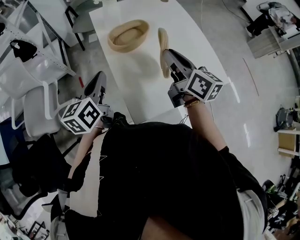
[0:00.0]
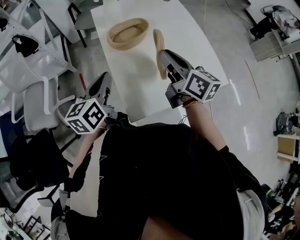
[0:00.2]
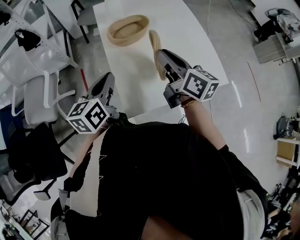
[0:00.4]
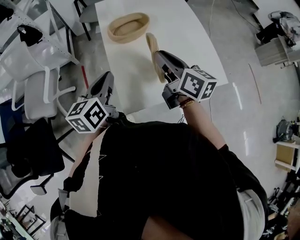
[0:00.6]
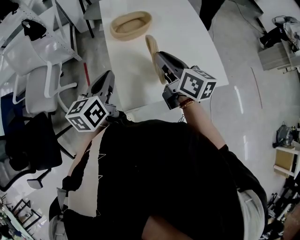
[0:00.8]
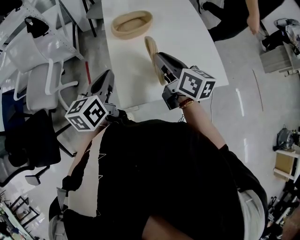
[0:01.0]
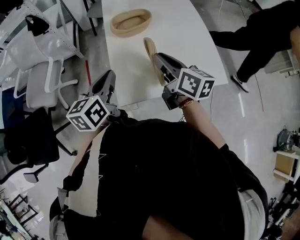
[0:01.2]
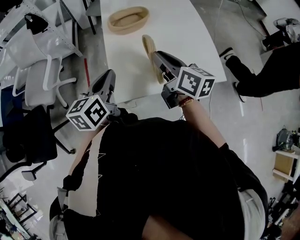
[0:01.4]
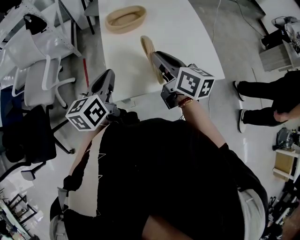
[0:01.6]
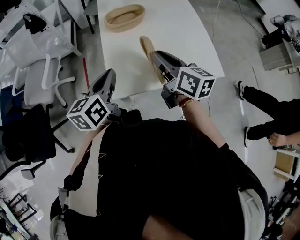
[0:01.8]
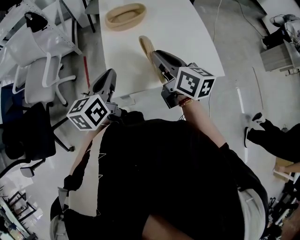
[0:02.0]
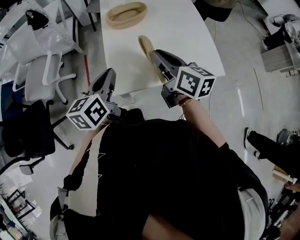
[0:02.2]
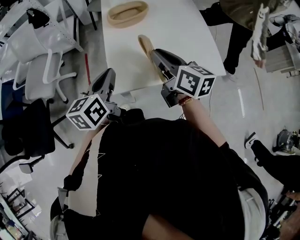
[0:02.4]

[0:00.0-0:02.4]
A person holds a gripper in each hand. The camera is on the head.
0:00.0 to 0:01.2: The right gripper travels backward by roughly 5 cm. The left gripper is displaced backward and to the right by some 10 cm.
0:01.2 to 0:02.4: The grippers make only small movements.

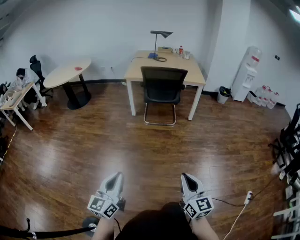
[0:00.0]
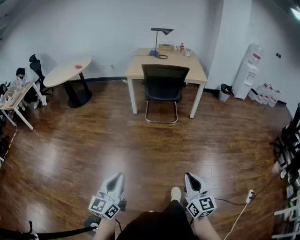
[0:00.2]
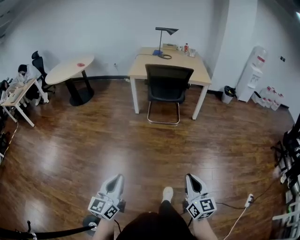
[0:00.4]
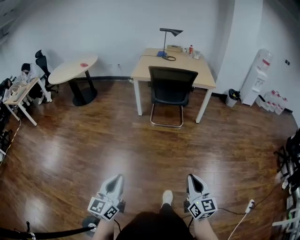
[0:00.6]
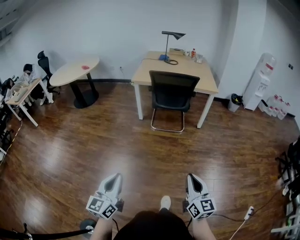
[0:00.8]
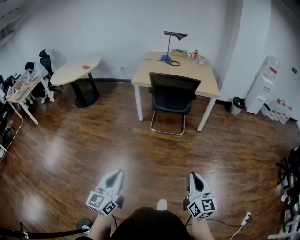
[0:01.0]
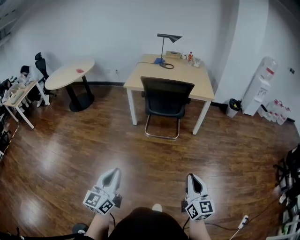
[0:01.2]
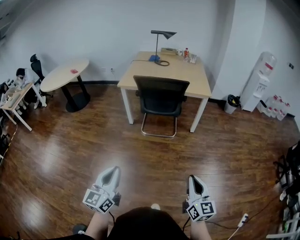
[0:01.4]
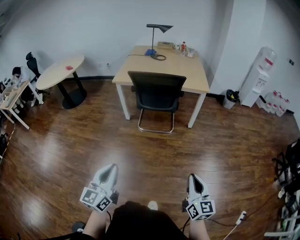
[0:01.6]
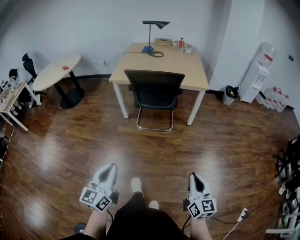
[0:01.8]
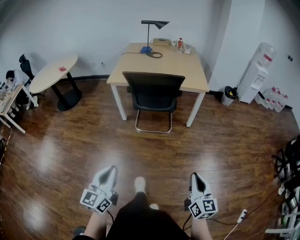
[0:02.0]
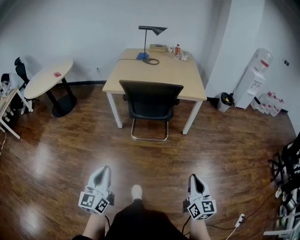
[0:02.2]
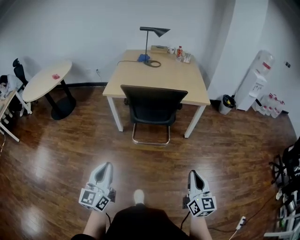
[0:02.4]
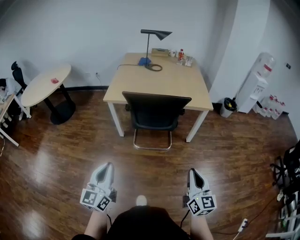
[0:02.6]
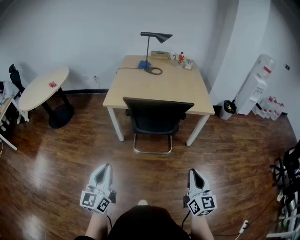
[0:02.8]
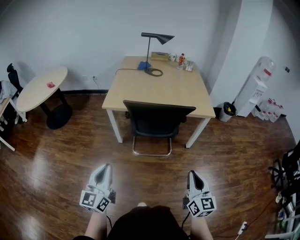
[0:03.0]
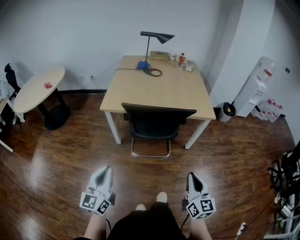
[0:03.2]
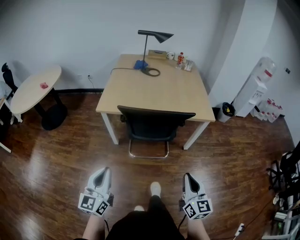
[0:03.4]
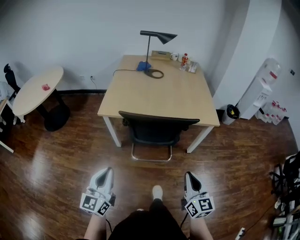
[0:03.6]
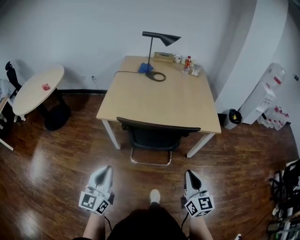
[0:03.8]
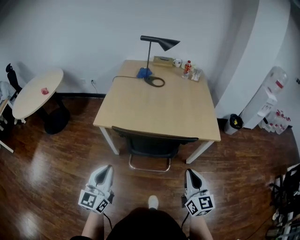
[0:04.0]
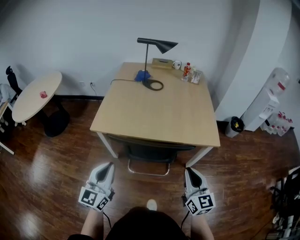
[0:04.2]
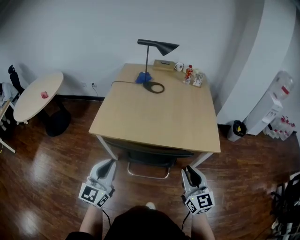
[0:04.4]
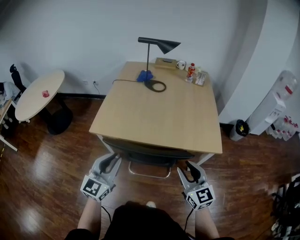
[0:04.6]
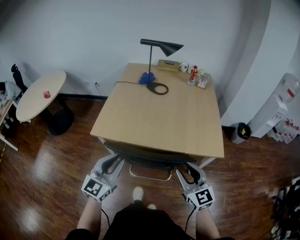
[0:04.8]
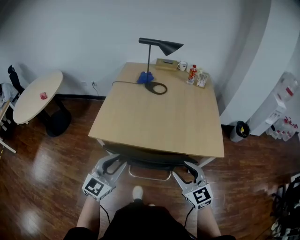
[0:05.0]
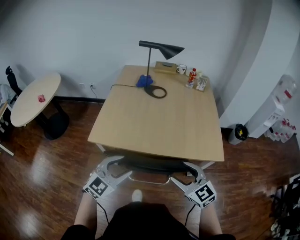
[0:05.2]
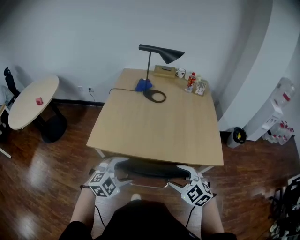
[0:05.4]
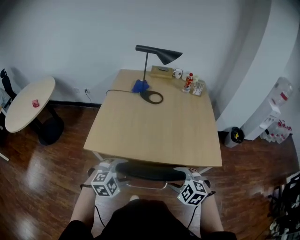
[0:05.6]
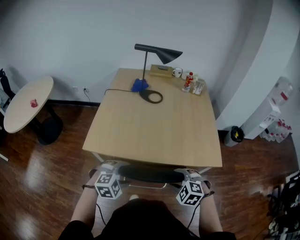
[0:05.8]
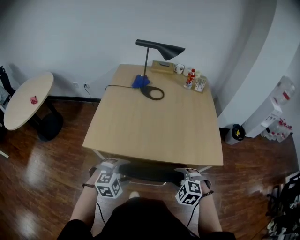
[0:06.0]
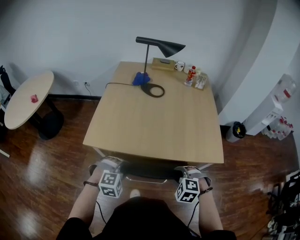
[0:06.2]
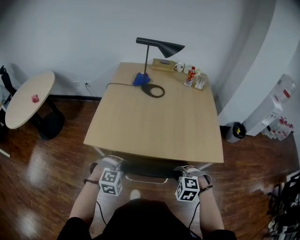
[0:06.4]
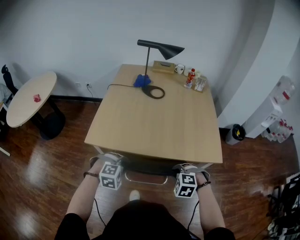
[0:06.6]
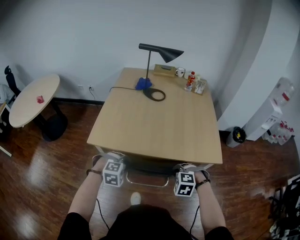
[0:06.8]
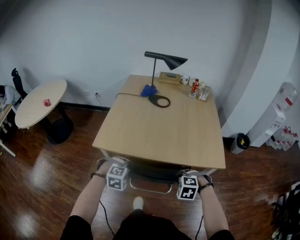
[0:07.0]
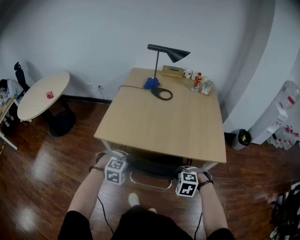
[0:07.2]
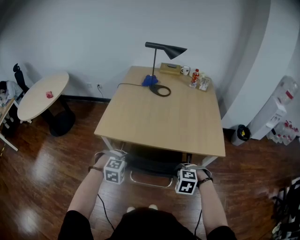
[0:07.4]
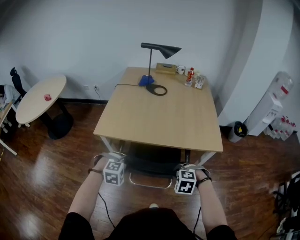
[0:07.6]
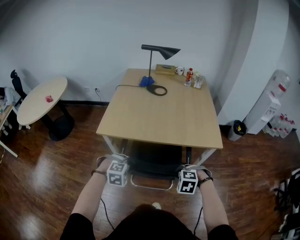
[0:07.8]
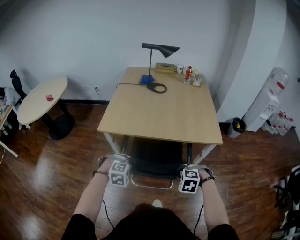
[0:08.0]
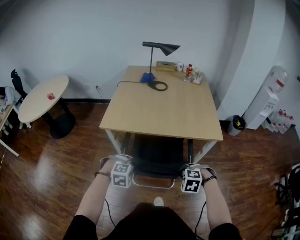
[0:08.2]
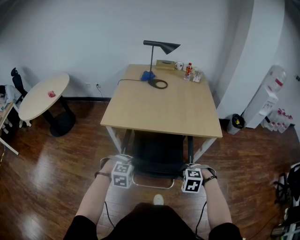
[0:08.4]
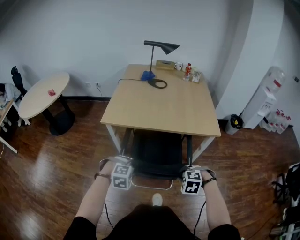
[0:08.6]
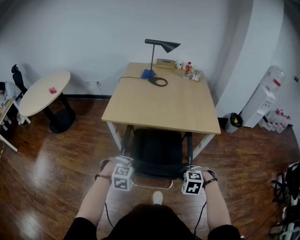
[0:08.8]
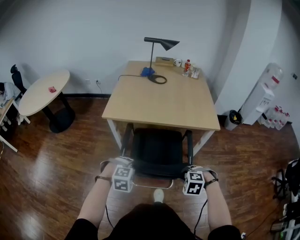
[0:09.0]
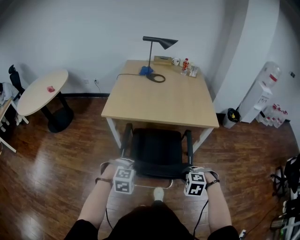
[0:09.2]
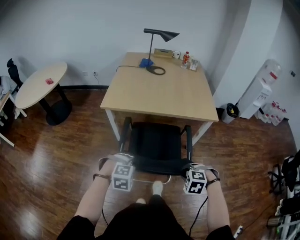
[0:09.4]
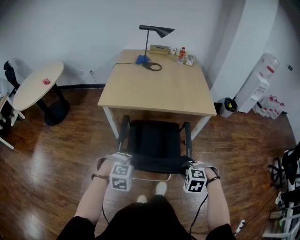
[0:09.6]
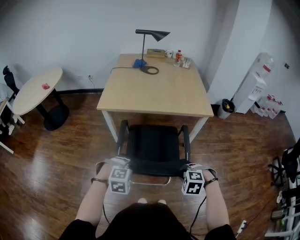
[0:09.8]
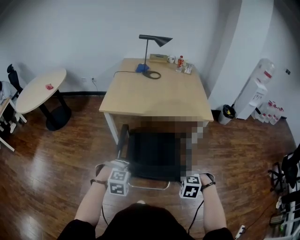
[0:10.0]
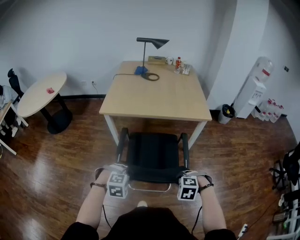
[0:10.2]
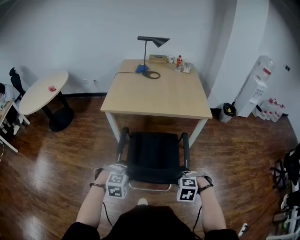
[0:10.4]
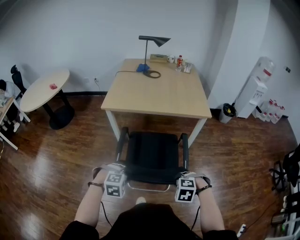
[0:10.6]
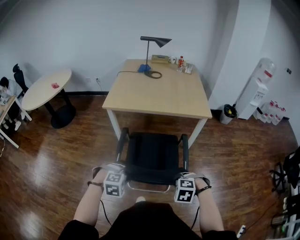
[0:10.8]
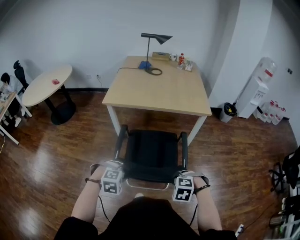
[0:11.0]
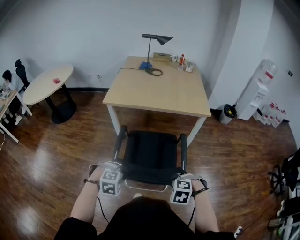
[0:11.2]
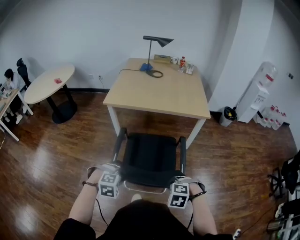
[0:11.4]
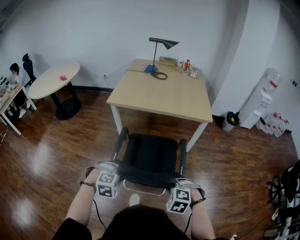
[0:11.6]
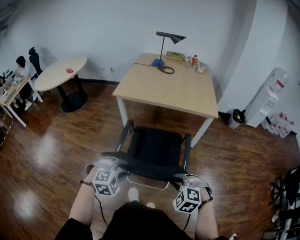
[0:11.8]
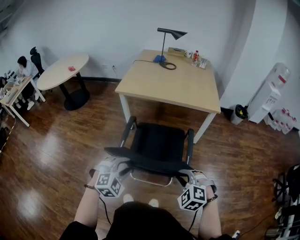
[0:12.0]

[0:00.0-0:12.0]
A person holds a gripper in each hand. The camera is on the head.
0:00.0 to 0:01.6: The grippers both shift forward and to the right by approximately 30 cm.
0:01.6 to 0:03.0: The right gripper shifts about 30 cm forward. Meanwhile the left gripper shifts roughly 35 cm forward and to the left.
0:03.0 to 0:04.4: The left gripper shifts roughly 30 cm forward and to the right. The right gripper is displaced forward by about 30 cm.
0:04.4 to 0:06.0: The right gripper shifts roughly 20 cm downward, forward and to the left, tips its fingers downward by roughly 50 degrees, and opens up; the left gripper travels downward and forward by roughly 20 cm, tips its fingers downward by approximately 50 degrees, and opens up.
0:06.0 to 0:07.6: The grippers both shift backward by roughly 10 cm. The right gripper closes up, while the left gripper closes.
0:07.6 to 0:09.0: The right gripper moves about 20 cm; the left gripper ends up approximately 20 cm from where it was.
0:09.0 to 0:10.4: The left gripper ends up about 15 cm from where it was; the right gripper moves approximately 15 cm.
0:10.4 to 0:12.0: The right gripper ends up some 10 cm from where it was, and changes its angle by about 30 degrees. The left gripper ends up some 10 cm from where it was, and changes its angle by about 30 degrees.

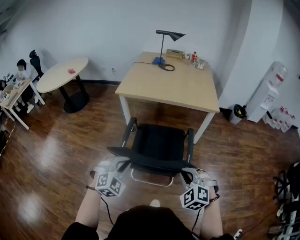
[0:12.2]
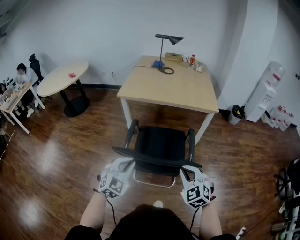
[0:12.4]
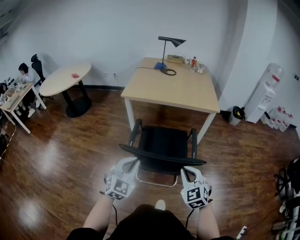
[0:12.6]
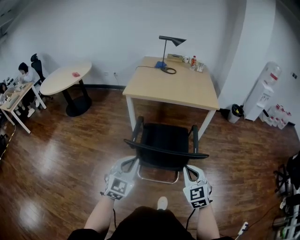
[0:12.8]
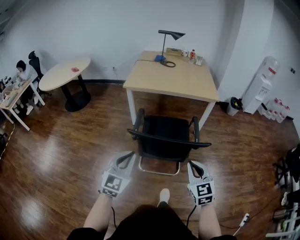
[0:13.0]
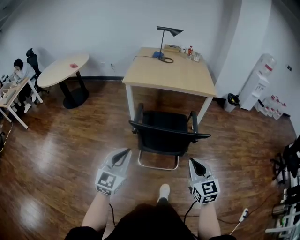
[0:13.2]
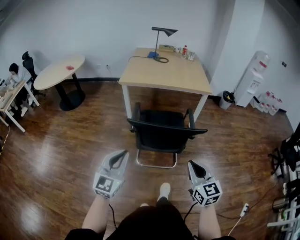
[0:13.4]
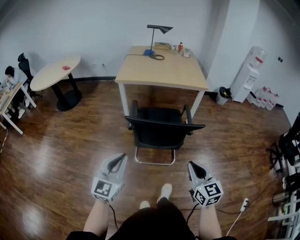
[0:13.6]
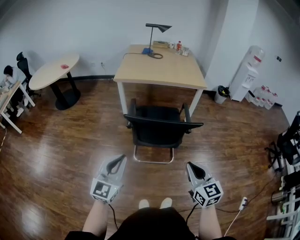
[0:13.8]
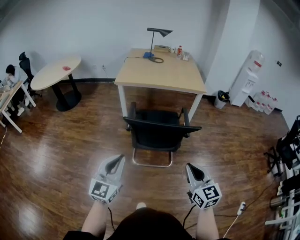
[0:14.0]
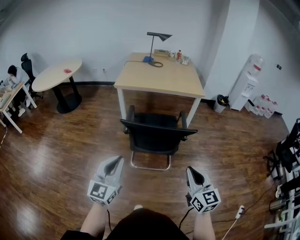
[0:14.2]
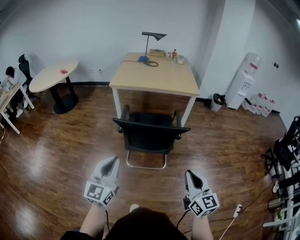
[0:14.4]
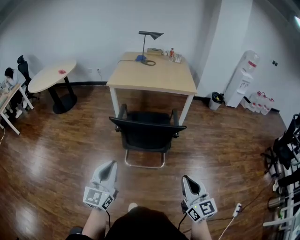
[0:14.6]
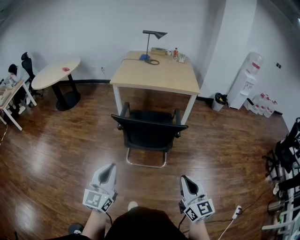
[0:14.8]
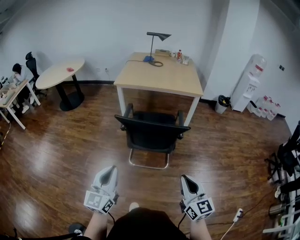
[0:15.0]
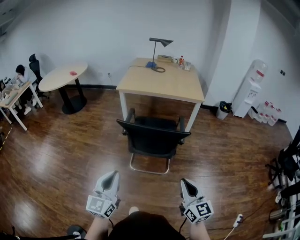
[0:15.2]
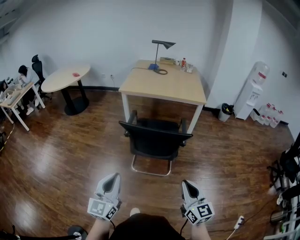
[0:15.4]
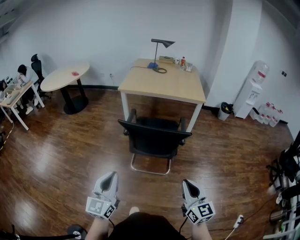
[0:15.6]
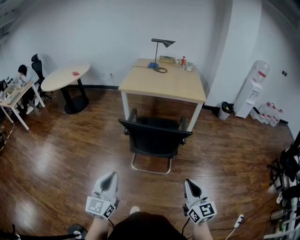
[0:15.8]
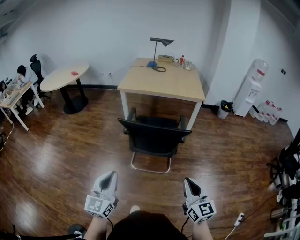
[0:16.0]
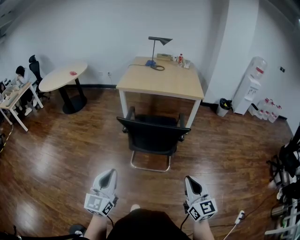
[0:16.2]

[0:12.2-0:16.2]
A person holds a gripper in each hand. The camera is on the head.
0:12.2 to 0:13.6: The left gripper shifts some 25 cm backward, to the left and upward, and tilts its fingers roughly 30 degrees upward; the right gripper goes approximately 20 cm backward, and rotates around the line of its fingers by roughly 50 degrees, clockwise from behind.
0:13.6 to 0:14.8: The grippers both shift backward and to the right by roughly 10 cm.
0:14.8 to 0:16.2: There are only small adjustments of the grippers.

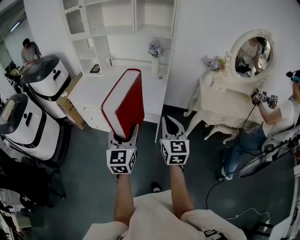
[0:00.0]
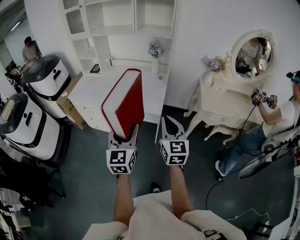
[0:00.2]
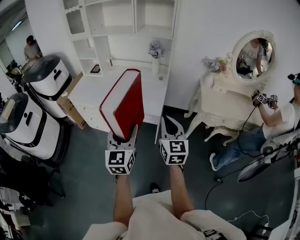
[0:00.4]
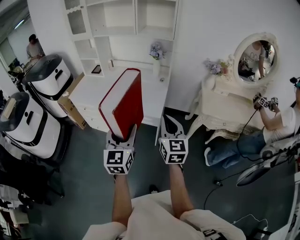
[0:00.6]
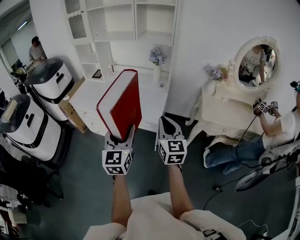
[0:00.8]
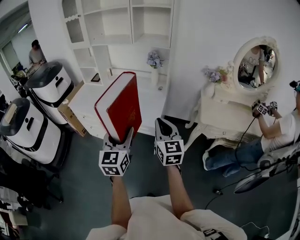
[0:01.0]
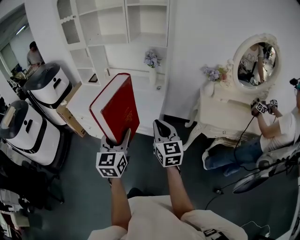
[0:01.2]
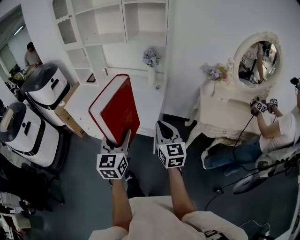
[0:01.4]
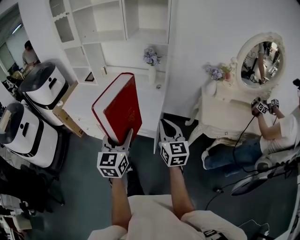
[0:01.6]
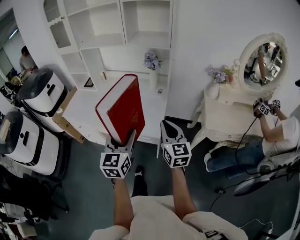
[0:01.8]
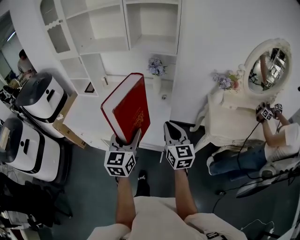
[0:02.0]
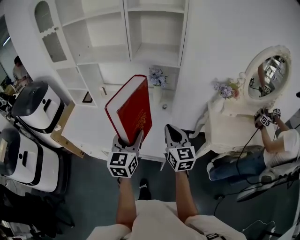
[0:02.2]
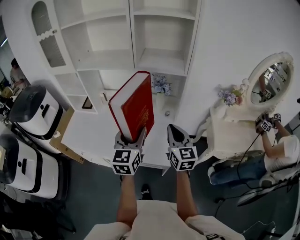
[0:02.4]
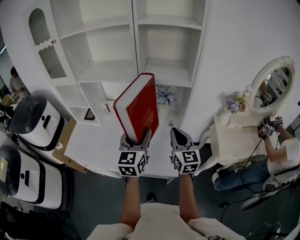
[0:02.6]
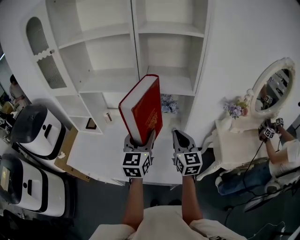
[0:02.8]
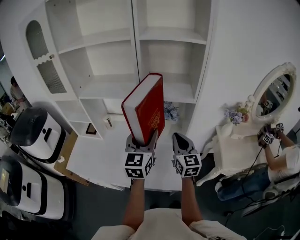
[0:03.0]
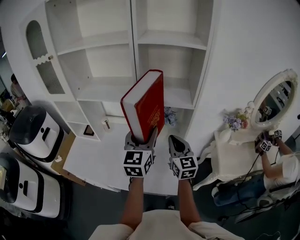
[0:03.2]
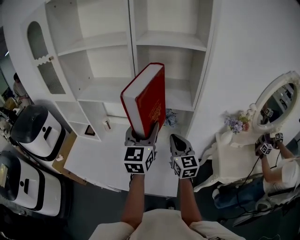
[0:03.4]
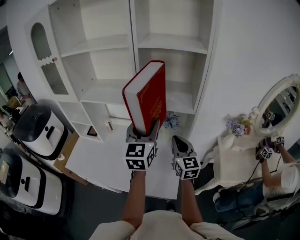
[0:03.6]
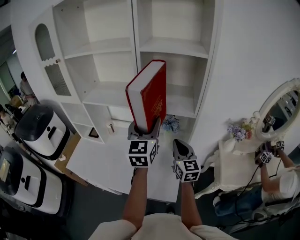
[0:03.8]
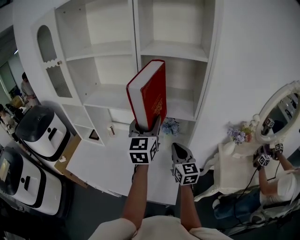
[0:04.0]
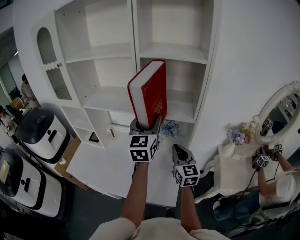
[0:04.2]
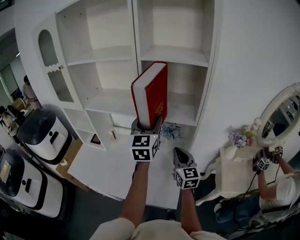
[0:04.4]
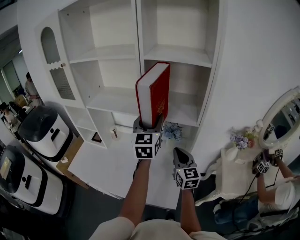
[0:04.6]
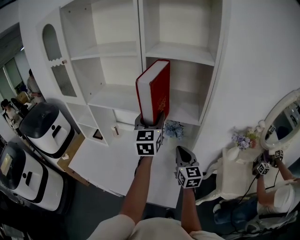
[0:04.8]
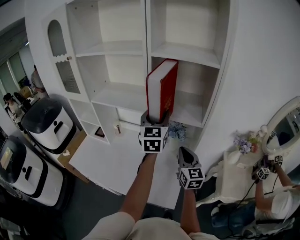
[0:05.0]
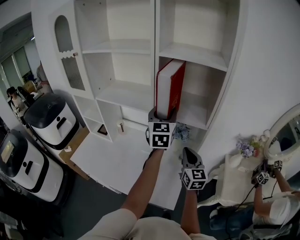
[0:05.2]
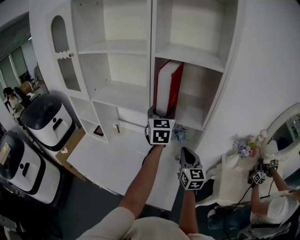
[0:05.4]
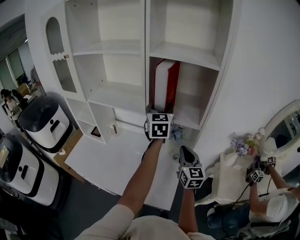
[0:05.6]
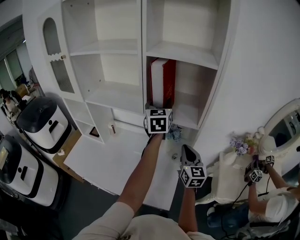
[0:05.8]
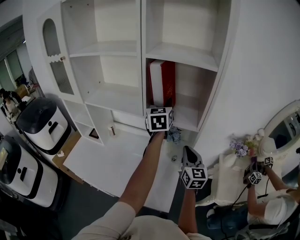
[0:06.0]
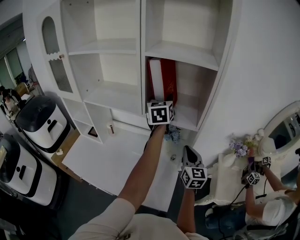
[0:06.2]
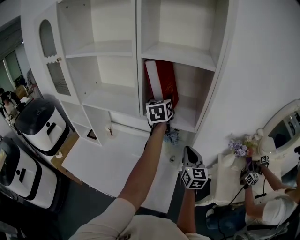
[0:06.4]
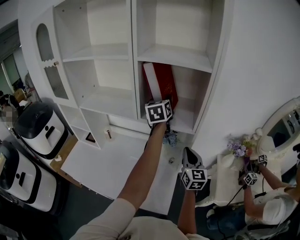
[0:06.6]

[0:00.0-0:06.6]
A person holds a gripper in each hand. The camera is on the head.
0:00.0 to 0:01.6: Both grippers move forward and to the right, approximately 15 cm.
0:01.6 to 0:03.2: The two grippers go approximately 40 cm forward.
0:03.2 to 0:05.0: The left gripper is displaced forward and upward by approximately 15 cm.
0:05.0 to 0:06.6: The right gripper heads to the right, covering about 5 cm; the left gripper shifts approximately 15 cm forward and to the right, and rotates about 20 degrees.
